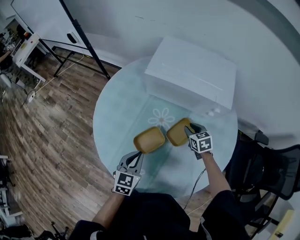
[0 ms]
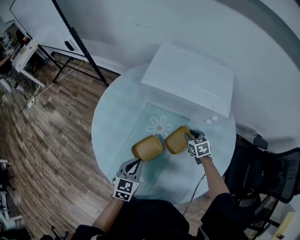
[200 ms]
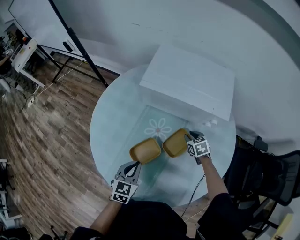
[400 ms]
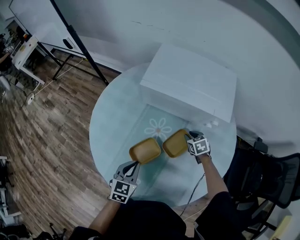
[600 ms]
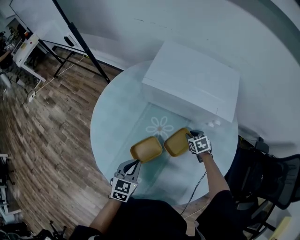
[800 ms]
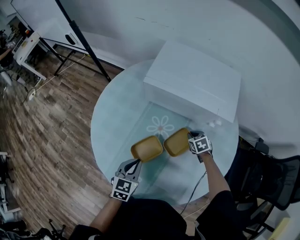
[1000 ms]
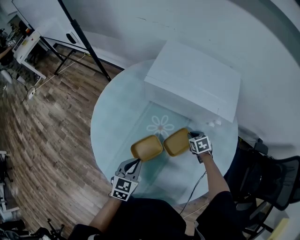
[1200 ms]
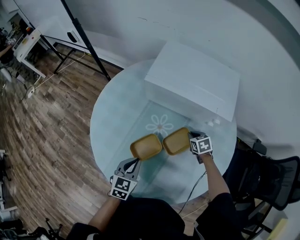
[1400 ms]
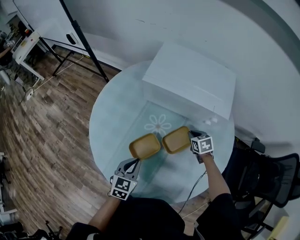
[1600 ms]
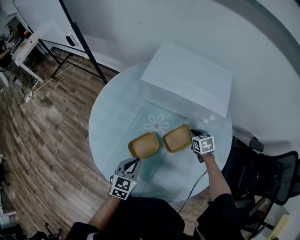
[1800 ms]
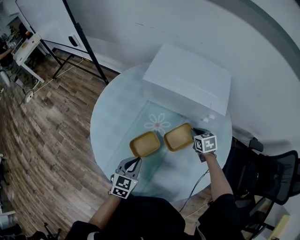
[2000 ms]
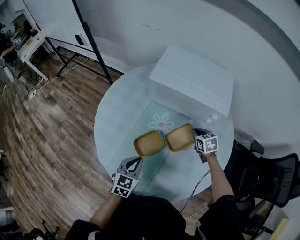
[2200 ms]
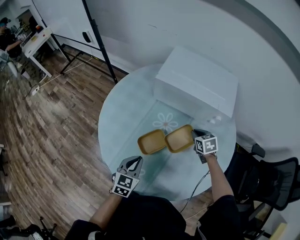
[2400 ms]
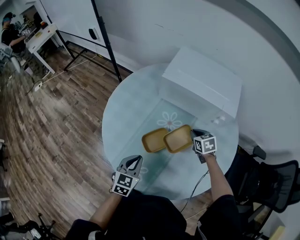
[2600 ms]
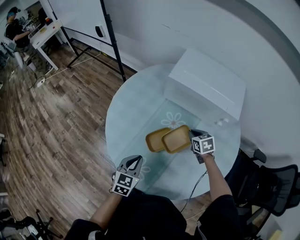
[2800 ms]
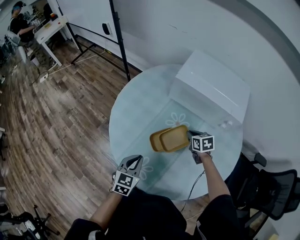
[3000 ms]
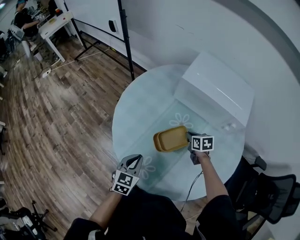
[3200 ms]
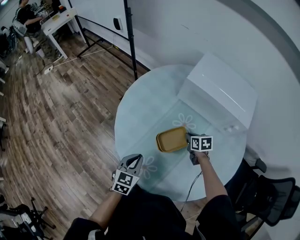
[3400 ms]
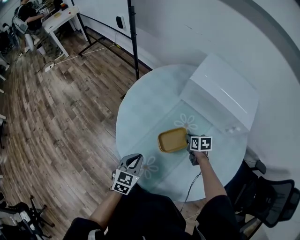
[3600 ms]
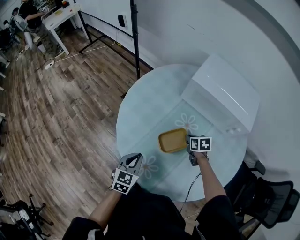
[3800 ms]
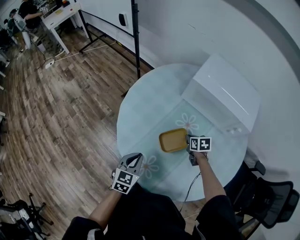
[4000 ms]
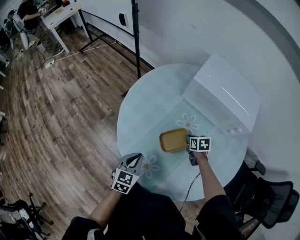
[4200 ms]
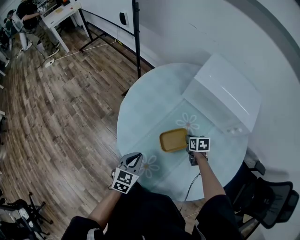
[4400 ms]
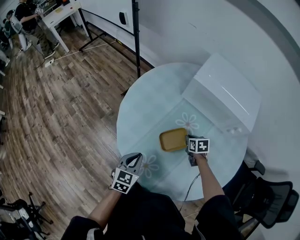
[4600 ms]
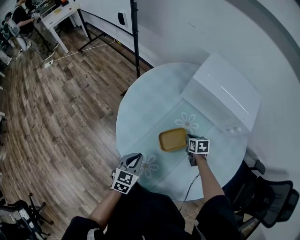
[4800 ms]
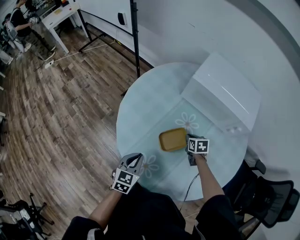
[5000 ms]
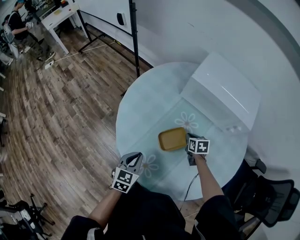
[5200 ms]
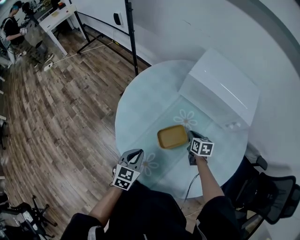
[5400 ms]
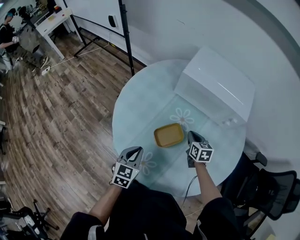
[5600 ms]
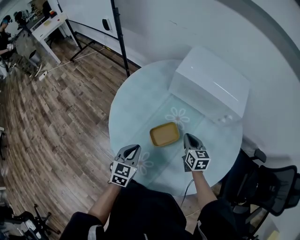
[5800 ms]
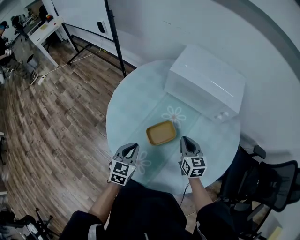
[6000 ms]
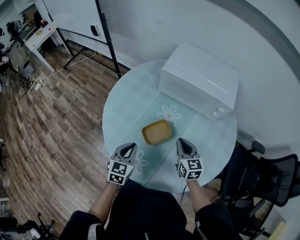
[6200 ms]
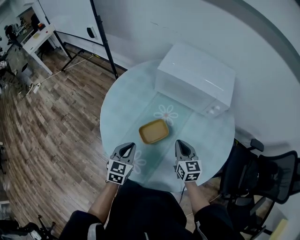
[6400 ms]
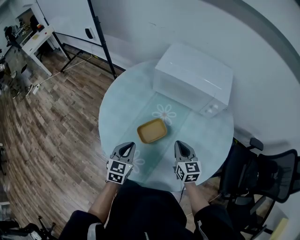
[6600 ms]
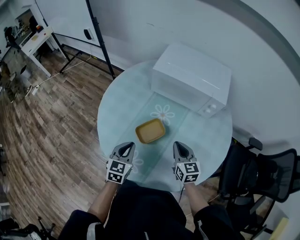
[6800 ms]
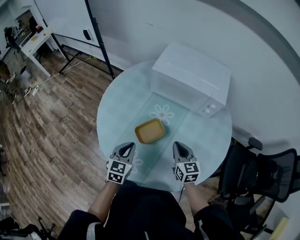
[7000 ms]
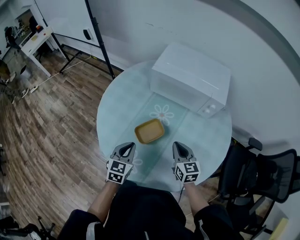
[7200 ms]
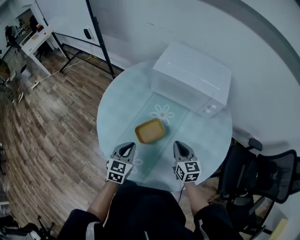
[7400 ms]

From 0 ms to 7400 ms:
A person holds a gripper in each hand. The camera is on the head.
From 0 ms to 1400 ms: The right gripper shifts about 5 cm downward.
From 1400 ms to 3000 ms: The right gripper goes roughly 15 cm to the left and upward, while the left gripper travels to the left and backward by about 10 cm.
From 3000 ms to 4400 ms: The left gripper moves to the left, some 5 cm. Meanwhile the right gripper travels downward by approximately 5 cm.
From 4400 ms to 6000 ms: The left gripper shifts by about 5 cm. The right gripper heads upward and backward, covering about 15 cm, and tips its fingers upward by approximately 30 degrees.
From 6000 ms to 7400 ms: The right gripper changes place by about 5 cm.

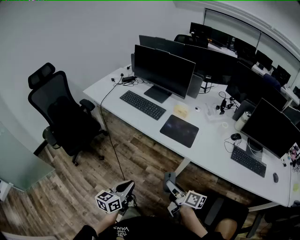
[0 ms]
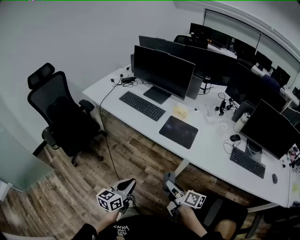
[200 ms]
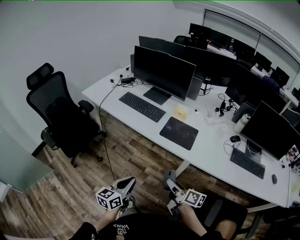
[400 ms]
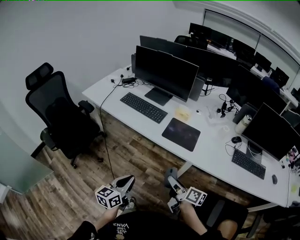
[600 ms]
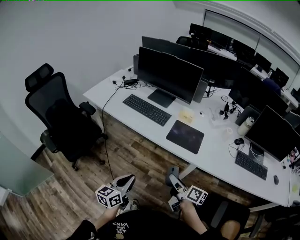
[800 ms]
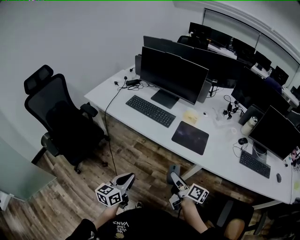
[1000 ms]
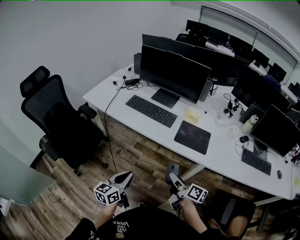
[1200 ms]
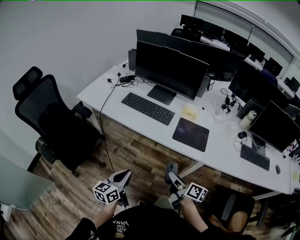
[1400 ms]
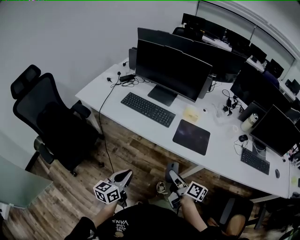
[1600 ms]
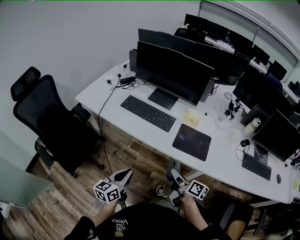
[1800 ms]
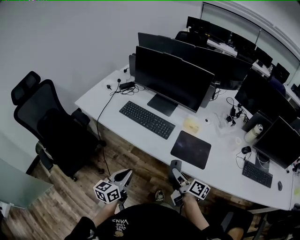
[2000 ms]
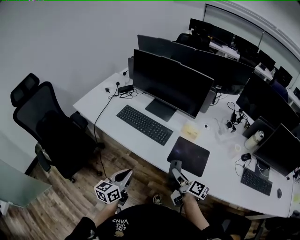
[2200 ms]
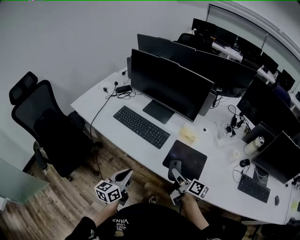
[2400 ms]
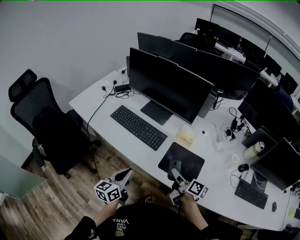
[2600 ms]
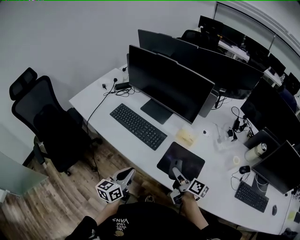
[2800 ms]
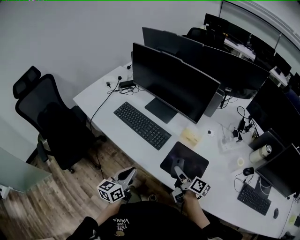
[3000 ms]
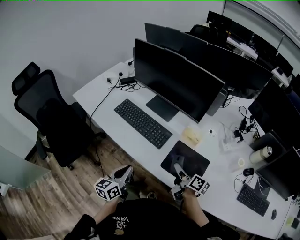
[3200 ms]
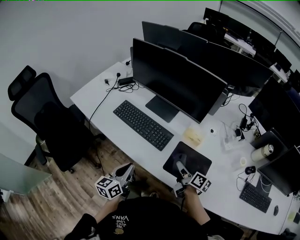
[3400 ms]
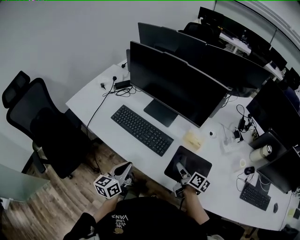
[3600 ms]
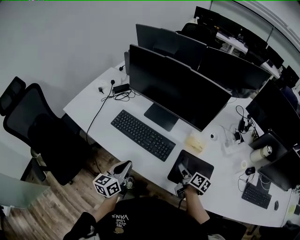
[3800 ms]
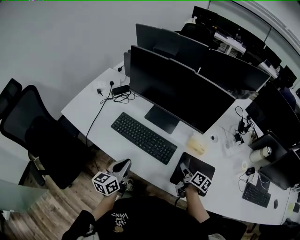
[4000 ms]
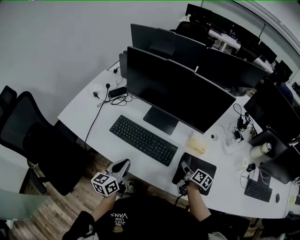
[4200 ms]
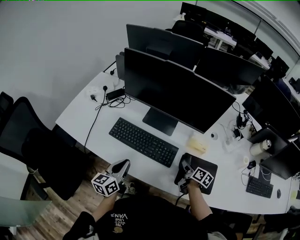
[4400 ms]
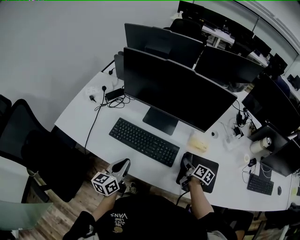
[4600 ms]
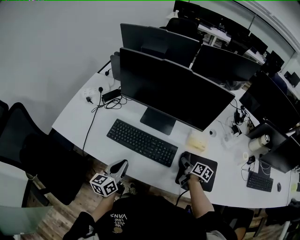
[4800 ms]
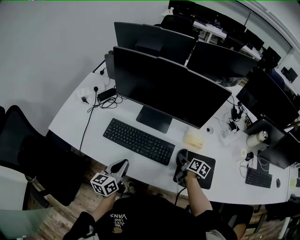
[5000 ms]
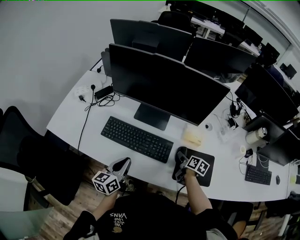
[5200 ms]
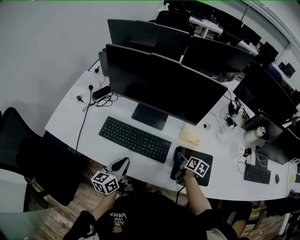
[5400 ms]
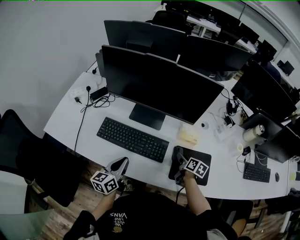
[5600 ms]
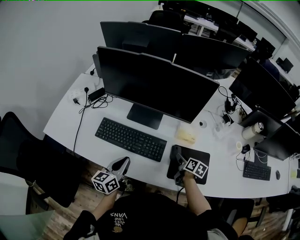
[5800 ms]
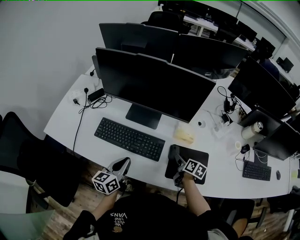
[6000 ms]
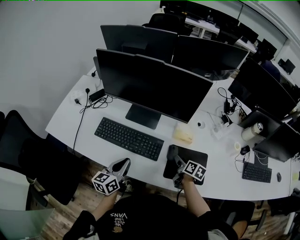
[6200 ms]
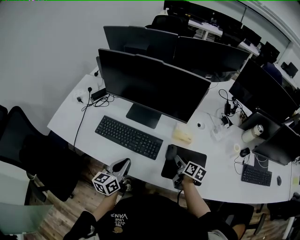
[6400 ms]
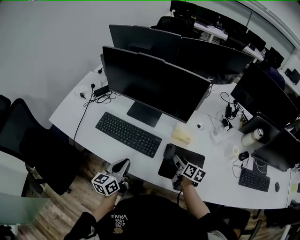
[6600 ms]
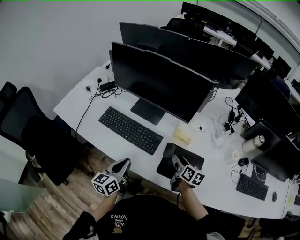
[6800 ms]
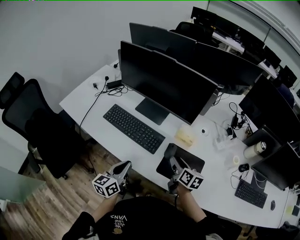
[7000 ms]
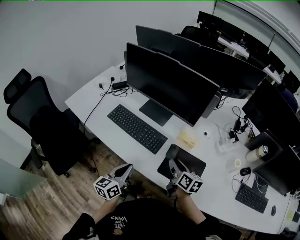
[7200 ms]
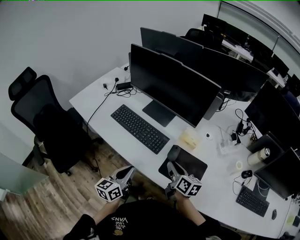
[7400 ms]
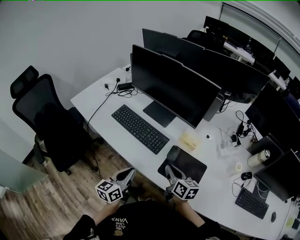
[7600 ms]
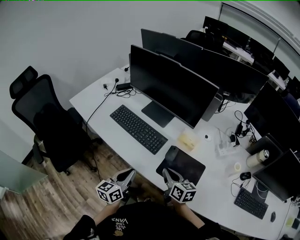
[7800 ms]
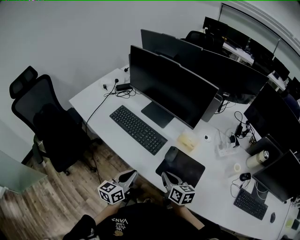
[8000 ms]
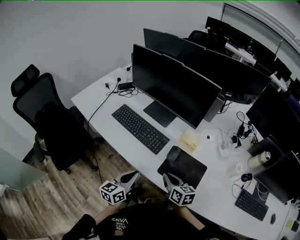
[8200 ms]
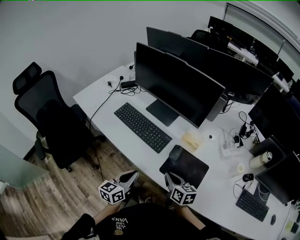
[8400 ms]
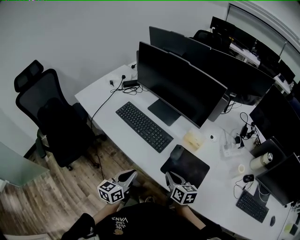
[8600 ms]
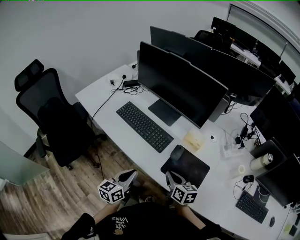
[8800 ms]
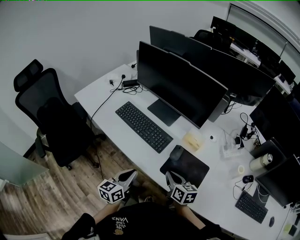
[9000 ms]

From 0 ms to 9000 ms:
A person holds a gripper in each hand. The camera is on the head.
From 0 ms to 1600 ms: Both grippers travel together forward and to the left, approximately 20 cm.
From 1600 ms to 3000 ms: The grippers both shift forward and to the right by approximately 25 cm.
From 3000 ms to 4400 ms: The right gripper moves forward and downward, about 15 cm, and swivels approximately 30 degrees, while the left gripper travels forward and to the left by approximately 20 cm.
From 4400 ms to 6000 ms: The left gripper shifts approximately 5 cm to the right.
From 6000 ms to 7600 ms: The right gripper travels upward, backward and to the left by about 15 cm, rotates about 40 degrees, and closes its fingers. The left gripper shifts some 15 cm backward and to the right.
From 7600 ms to 9000 ms: There are only small adjustments of the grippers.

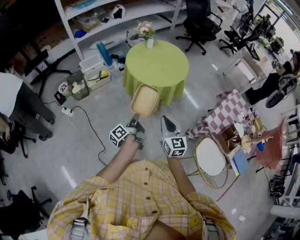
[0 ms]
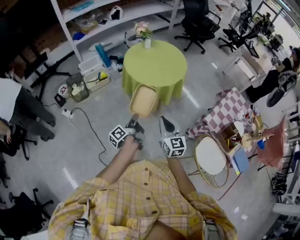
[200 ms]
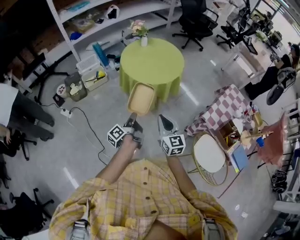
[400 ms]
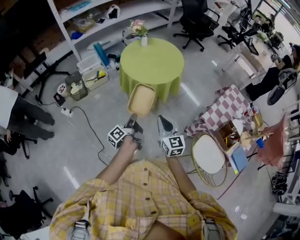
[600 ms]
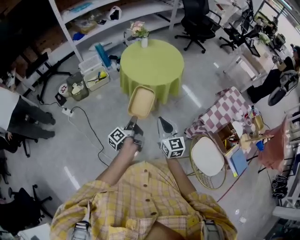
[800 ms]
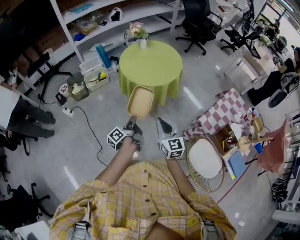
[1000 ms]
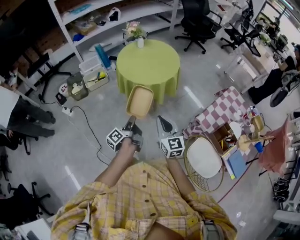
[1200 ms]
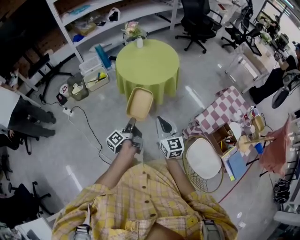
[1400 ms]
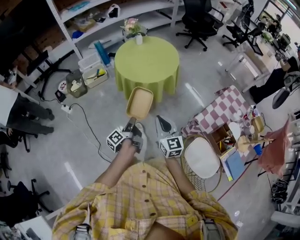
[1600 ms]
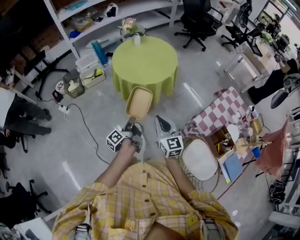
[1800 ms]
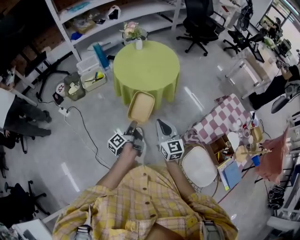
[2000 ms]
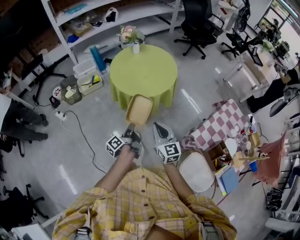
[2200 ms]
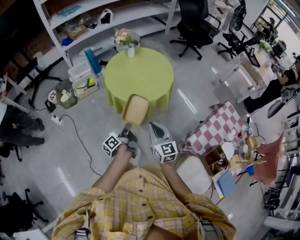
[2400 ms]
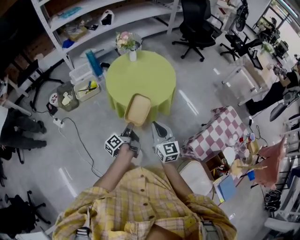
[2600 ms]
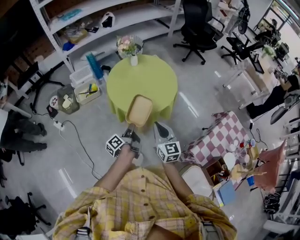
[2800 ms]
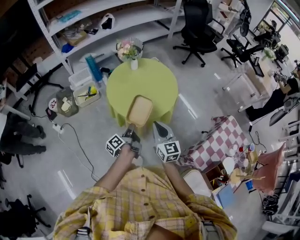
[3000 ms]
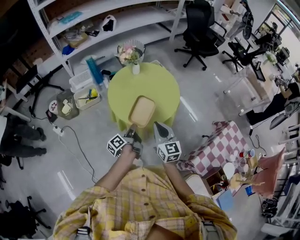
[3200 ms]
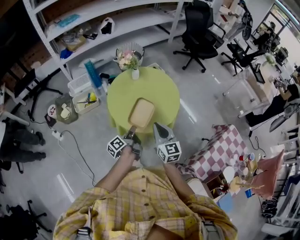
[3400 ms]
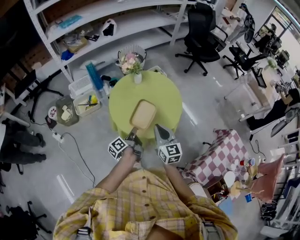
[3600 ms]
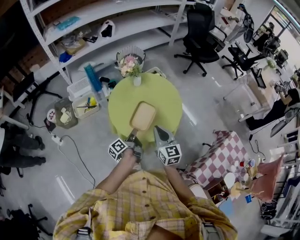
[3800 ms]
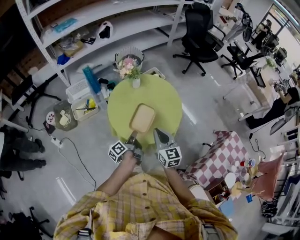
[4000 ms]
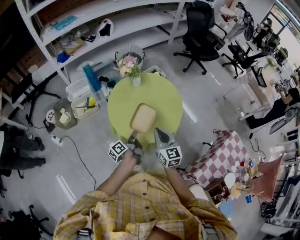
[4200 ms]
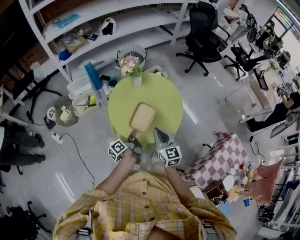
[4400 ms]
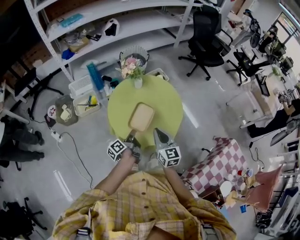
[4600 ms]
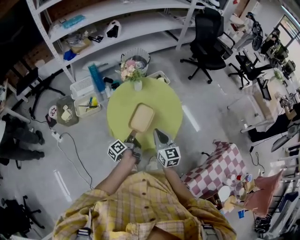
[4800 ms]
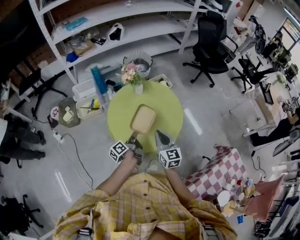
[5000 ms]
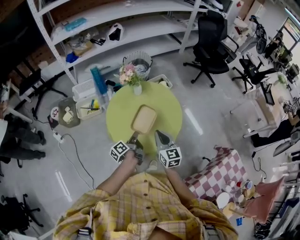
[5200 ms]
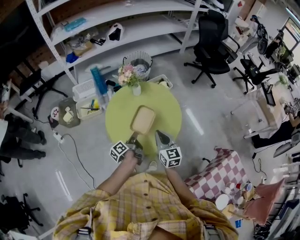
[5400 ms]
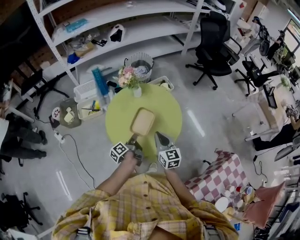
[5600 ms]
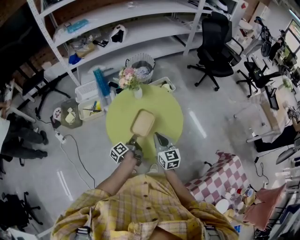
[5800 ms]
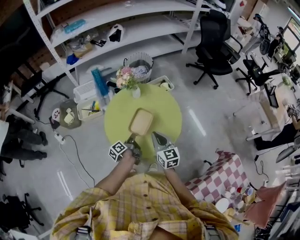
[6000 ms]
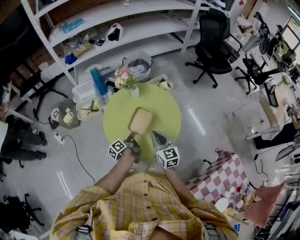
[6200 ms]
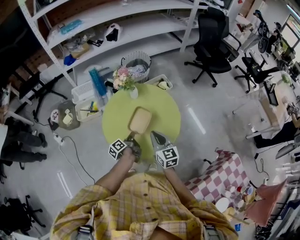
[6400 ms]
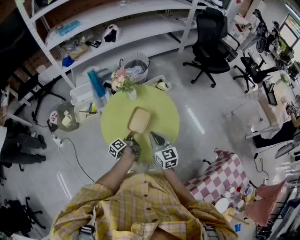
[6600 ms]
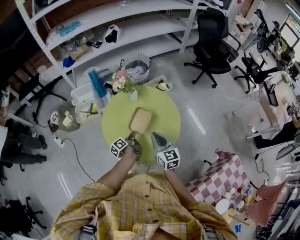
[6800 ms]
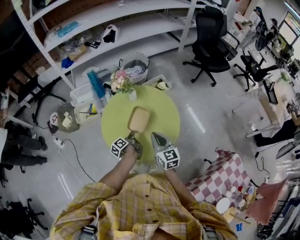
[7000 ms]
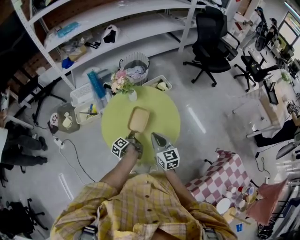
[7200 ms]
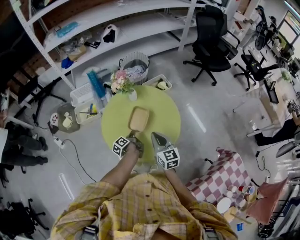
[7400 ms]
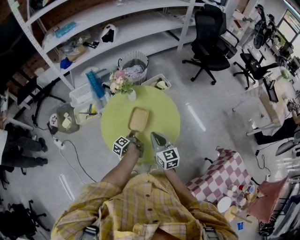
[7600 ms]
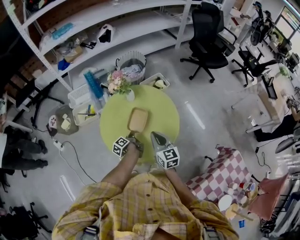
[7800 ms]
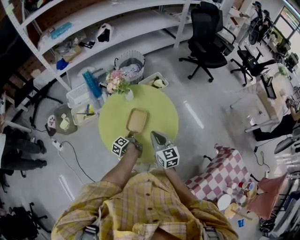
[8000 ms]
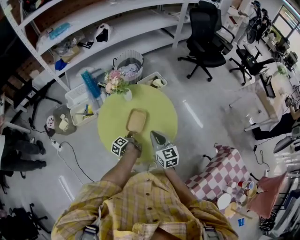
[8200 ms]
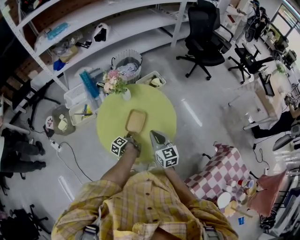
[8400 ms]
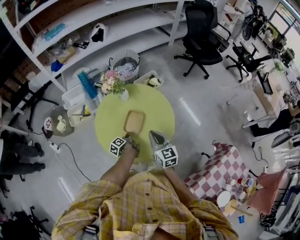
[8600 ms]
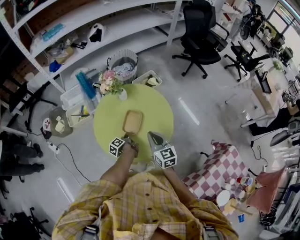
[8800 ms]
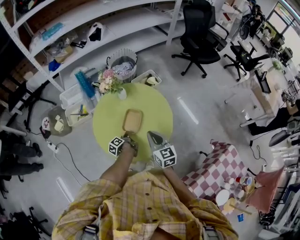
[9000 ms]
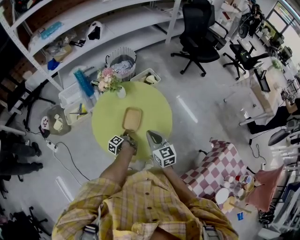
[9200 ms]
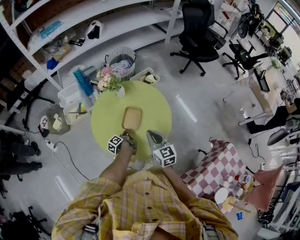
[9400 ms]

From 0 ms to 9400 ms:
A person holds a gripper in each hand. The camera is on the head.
From 0 ms to 1600 ms: The right gripper changes place by about 15 cm.
From 1600 ms to 3200 ms: The right gripper shifts by some 35 cm.
From 3200 ms to 4800 ms: The right gripper moves about 15 cm.
From 4800 ms to 6200 ms: The right gripper changes place by roughly 10 cm.
